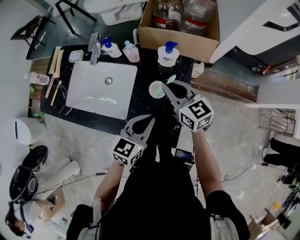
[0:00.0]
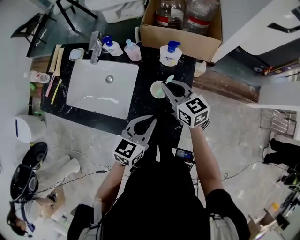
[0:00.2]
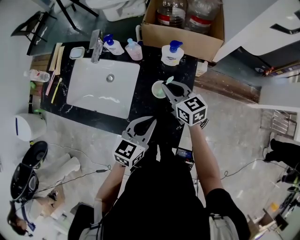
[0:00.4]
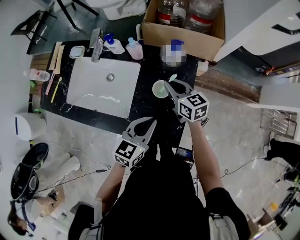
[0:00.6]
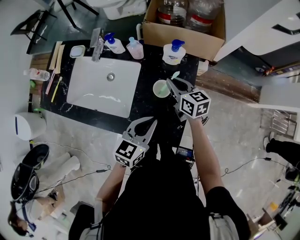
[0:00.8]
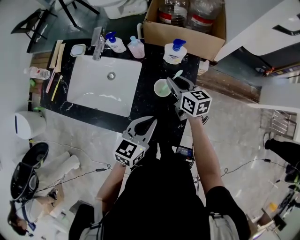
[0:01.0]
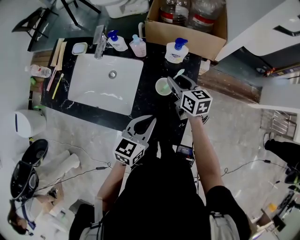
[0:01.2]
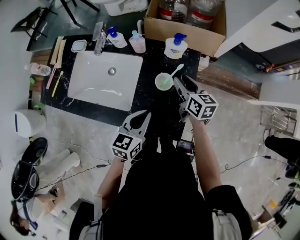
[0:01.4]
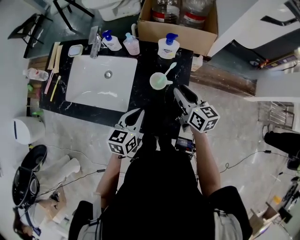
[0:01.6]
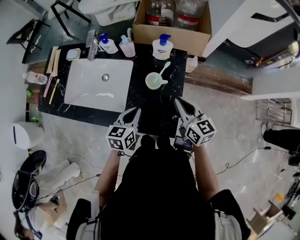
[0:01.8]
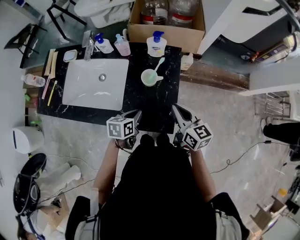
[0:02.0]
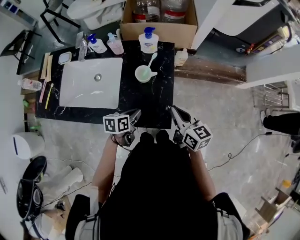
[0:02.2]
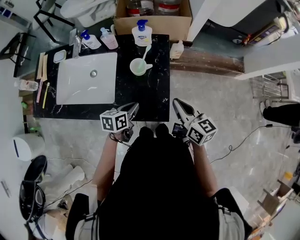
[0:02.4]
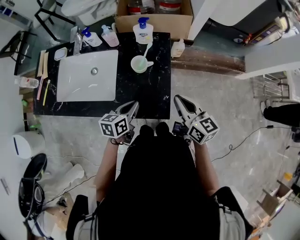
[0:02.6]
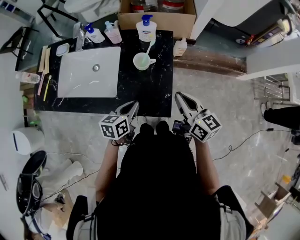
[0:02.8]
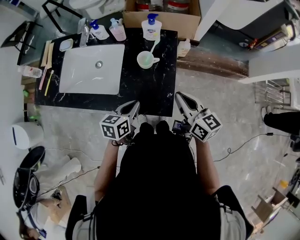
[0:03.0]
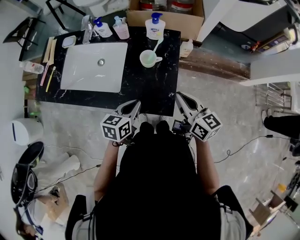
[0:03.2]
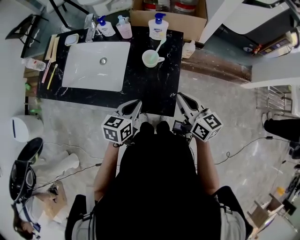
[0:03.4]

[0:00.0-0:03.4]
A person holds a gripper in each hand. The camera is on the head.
0:00.0 to 0:01.6: The left gripper goes approximately 10 cm to the left and downward. The right gripper travels downward and to the right by some 10 cm, swivels about 20 degrees, and opens its fingers.
0:01.6 to 0:03.4: The right gripper goes some 15 cm backward, and closes up; the left gripper is displaced backward by approximately 5 cm, and travels downward and back again, about 10 cm each way.

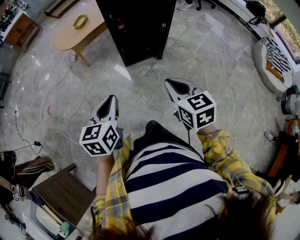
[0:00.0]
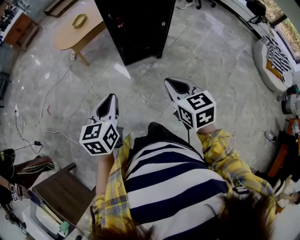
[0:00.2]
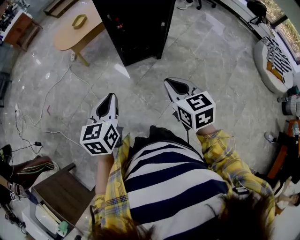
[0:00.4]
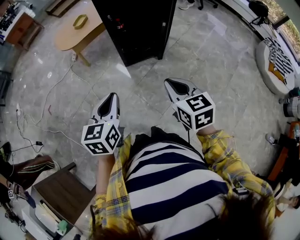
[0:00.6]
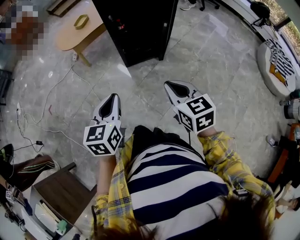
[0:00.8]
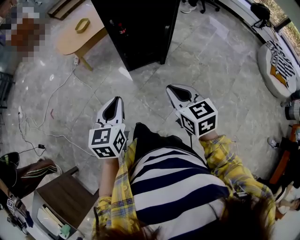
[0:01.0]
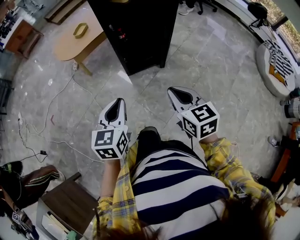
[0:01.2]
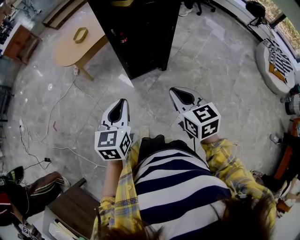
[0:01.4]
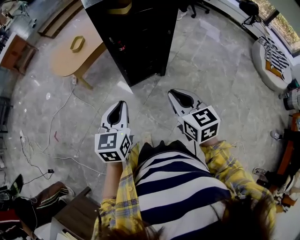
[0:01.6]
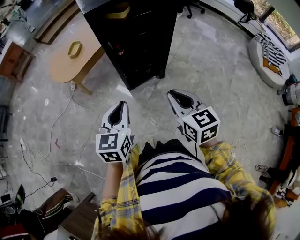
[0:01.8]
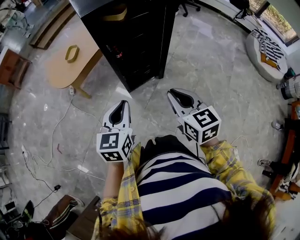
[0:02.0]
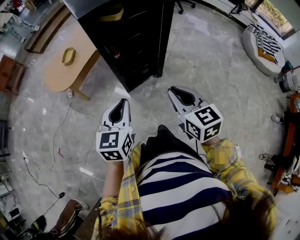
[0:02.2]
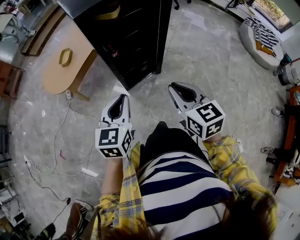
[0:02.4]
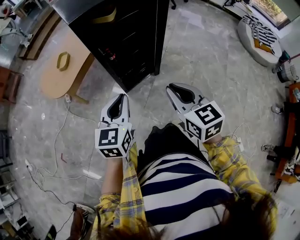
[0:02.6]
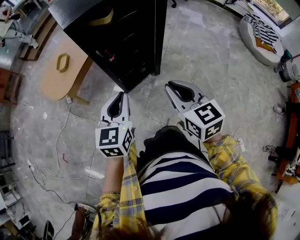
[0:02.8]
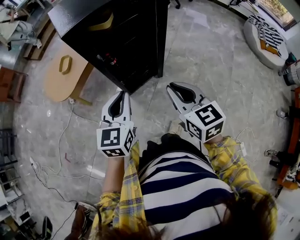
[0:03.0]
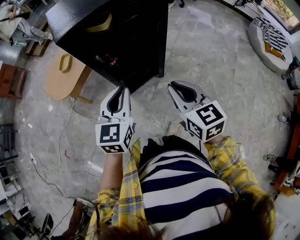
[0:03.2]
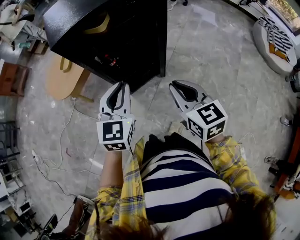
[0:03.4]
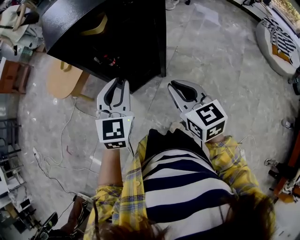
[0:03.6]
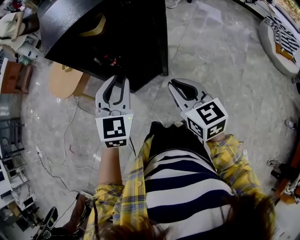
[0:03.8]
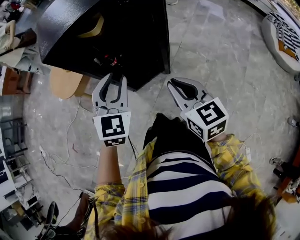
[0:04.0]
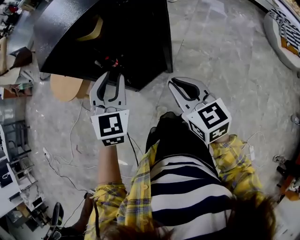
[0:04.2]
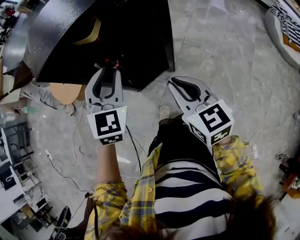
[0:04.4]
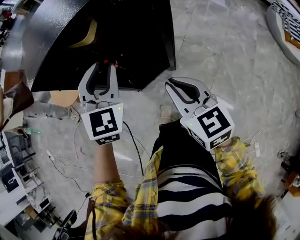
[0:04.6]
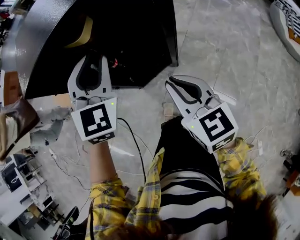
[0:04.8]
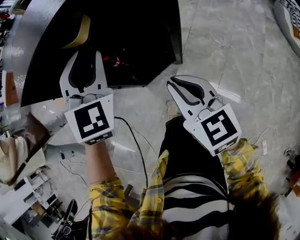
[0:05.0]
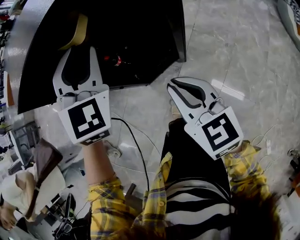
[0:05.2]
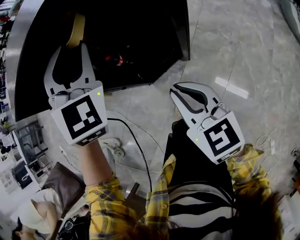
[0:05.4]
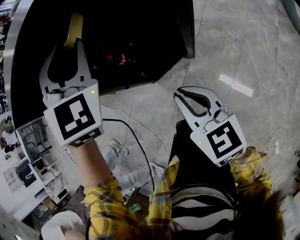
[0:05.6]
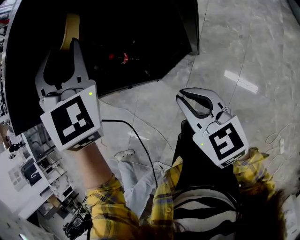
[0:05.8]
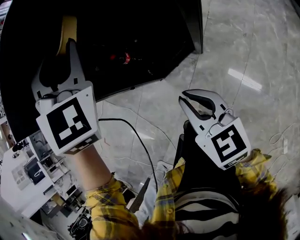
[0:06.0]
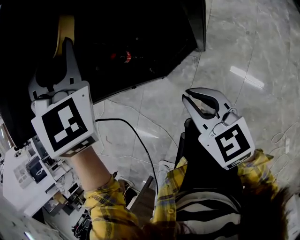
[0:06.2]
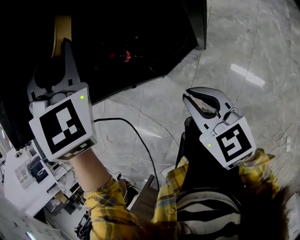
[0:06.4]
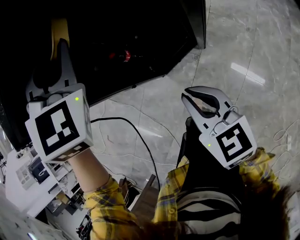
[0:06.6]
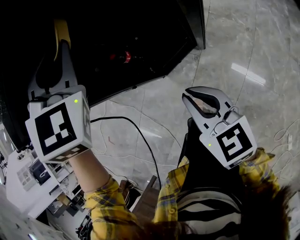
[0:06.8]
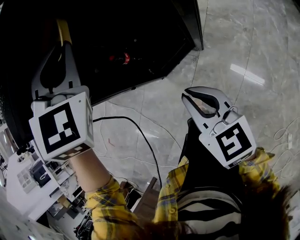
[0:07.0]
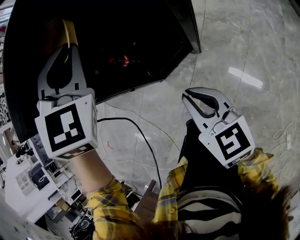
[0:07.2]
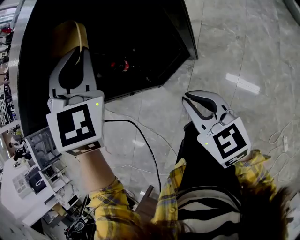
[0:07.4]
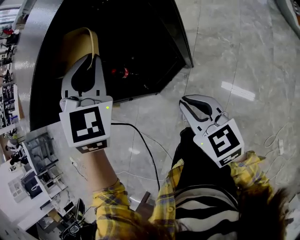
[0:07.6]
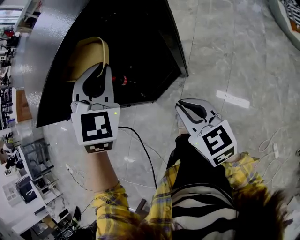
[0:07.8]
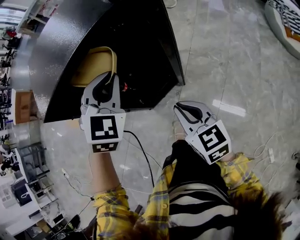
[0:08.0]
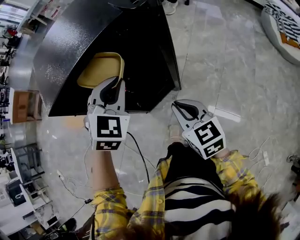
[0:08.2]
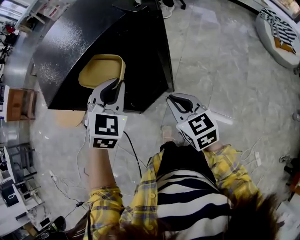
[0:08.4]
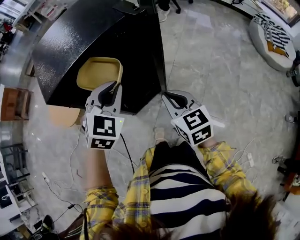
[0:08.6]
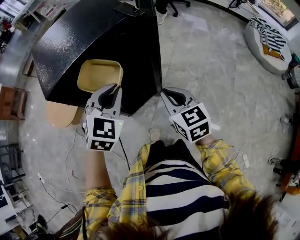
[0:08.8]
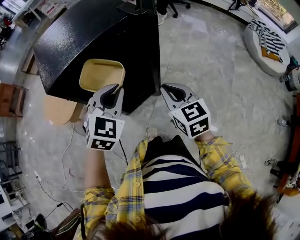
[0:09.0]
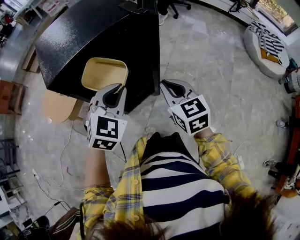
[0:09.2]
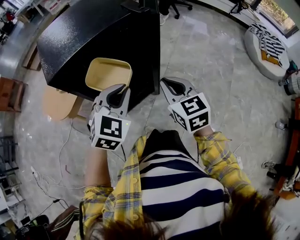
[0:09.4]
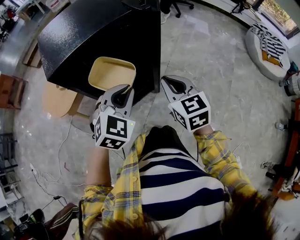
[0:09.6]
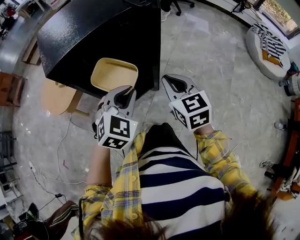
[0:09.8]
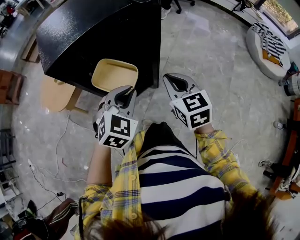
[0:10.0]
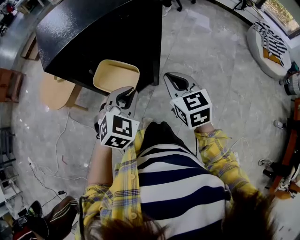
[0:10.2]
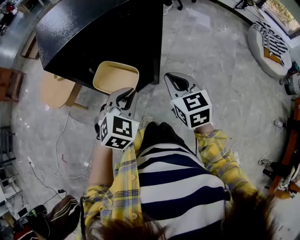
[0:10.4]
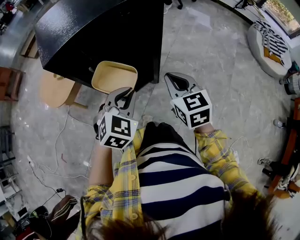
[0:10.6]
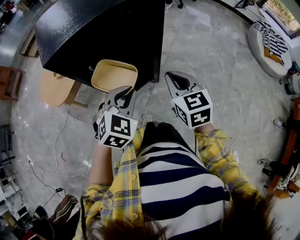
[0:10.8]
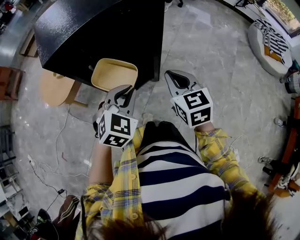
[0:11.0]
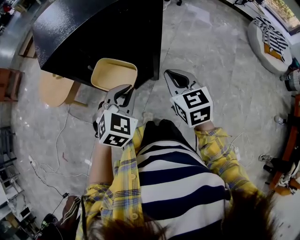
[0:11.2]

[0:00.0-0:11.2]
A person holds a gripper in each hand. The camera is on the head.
0:00.0 to 0:01.6: Both grippers move forward, about 10 cm.
0:01.6 to 0:03.2: Both grippers move forward, about 15 cm.
0:03.2 to 0:04.8: The right gripper shifts roughly 10 cm forward. The left gripper moves forward, some 20 cm, turns by roughly 30 degrees, and opens its fingers.
0:04.8 to 0:06.4: The left gripper is displaced forward by some 10 cm, and turns by some 20 degrees. Meanwhile the right gripper goes about 10 cm downward.
0:06.4 to 0:08.0: The left gripper travels backward by about 10 cm, and turns by approximately 20 degrees, while the right gripper moves upward, approximately 5 cm.
0:08.0 to 0:09.6: The right gripper heads upward, covering about 10 cm. Meanwhile the left gripper moves backward, some 10 cm.
0:09.6 to 0:11.2: The left gripper ends up some 5 cm from where it was.

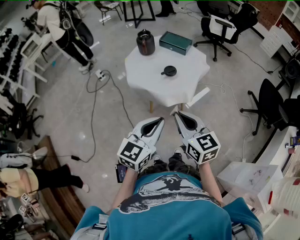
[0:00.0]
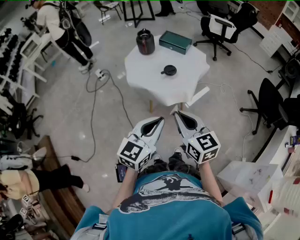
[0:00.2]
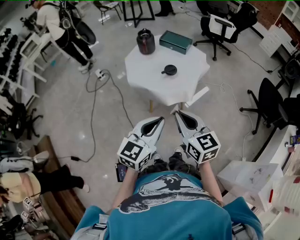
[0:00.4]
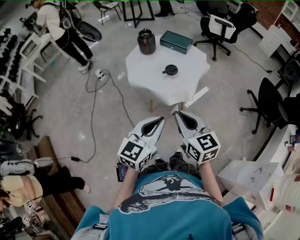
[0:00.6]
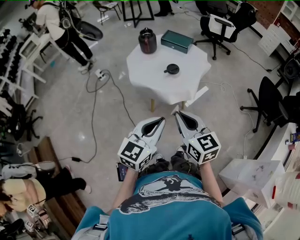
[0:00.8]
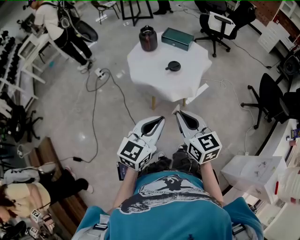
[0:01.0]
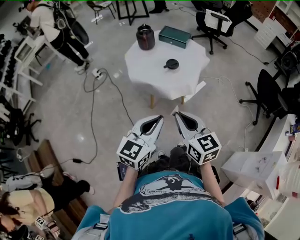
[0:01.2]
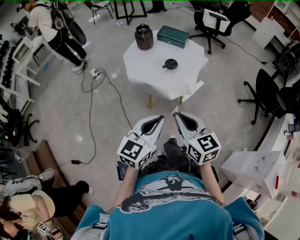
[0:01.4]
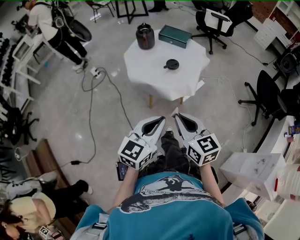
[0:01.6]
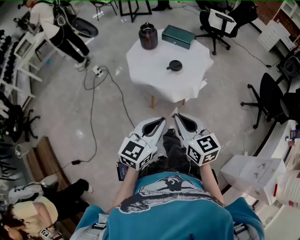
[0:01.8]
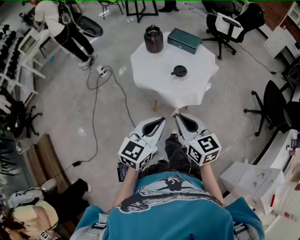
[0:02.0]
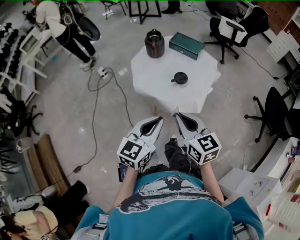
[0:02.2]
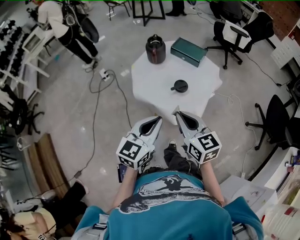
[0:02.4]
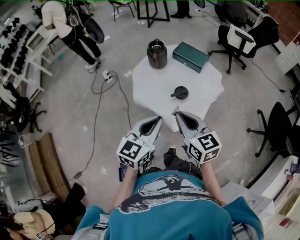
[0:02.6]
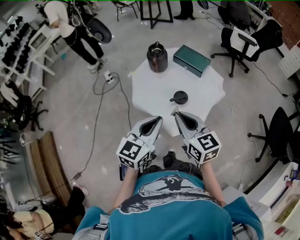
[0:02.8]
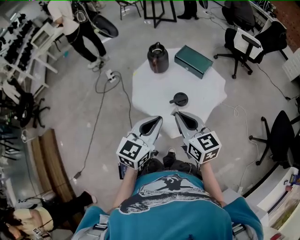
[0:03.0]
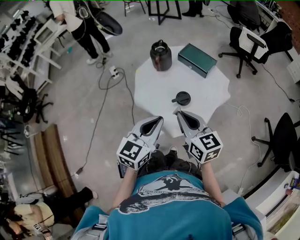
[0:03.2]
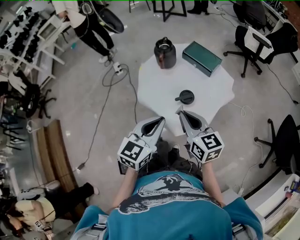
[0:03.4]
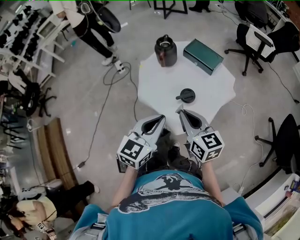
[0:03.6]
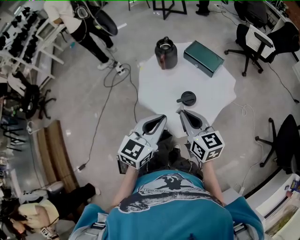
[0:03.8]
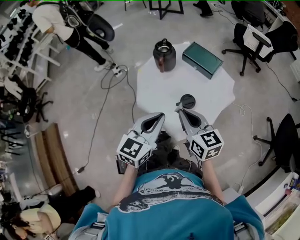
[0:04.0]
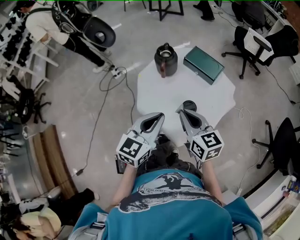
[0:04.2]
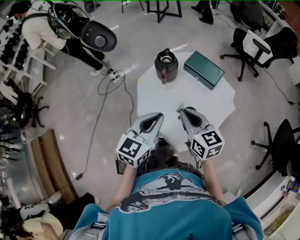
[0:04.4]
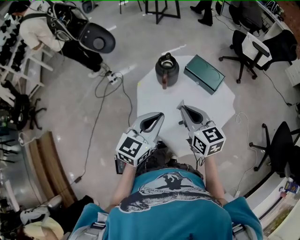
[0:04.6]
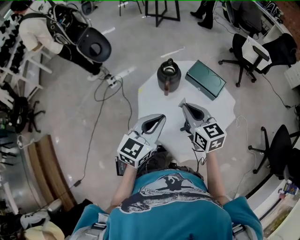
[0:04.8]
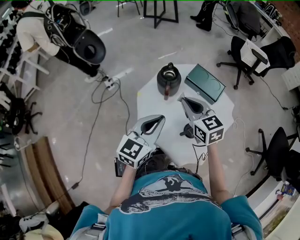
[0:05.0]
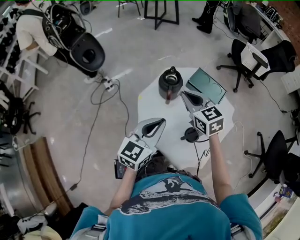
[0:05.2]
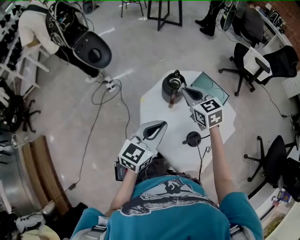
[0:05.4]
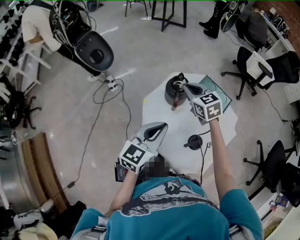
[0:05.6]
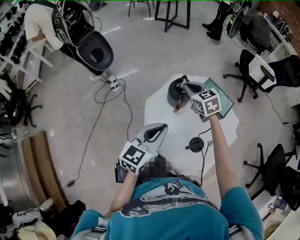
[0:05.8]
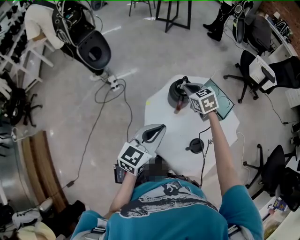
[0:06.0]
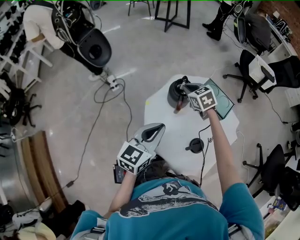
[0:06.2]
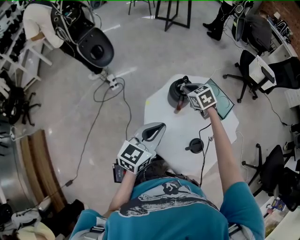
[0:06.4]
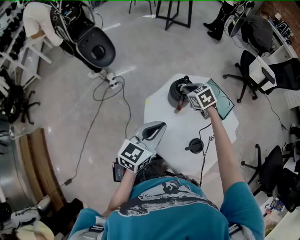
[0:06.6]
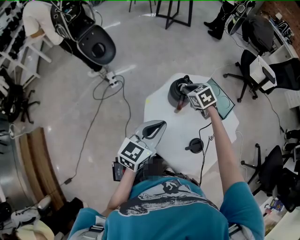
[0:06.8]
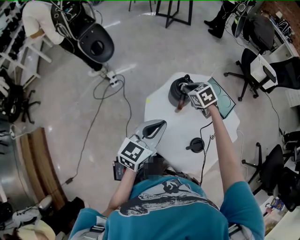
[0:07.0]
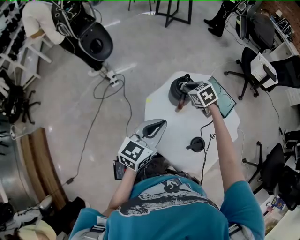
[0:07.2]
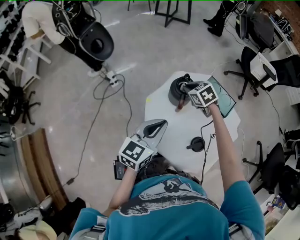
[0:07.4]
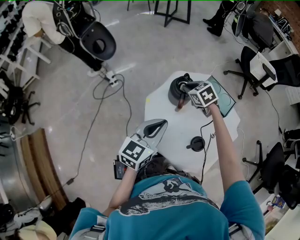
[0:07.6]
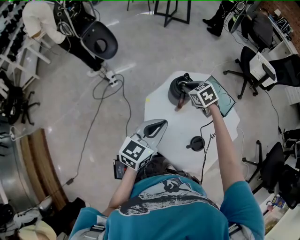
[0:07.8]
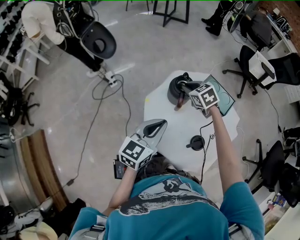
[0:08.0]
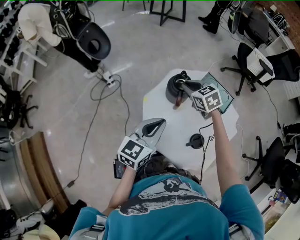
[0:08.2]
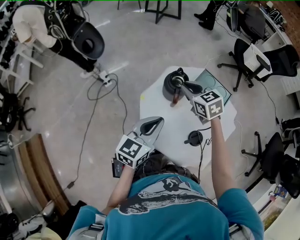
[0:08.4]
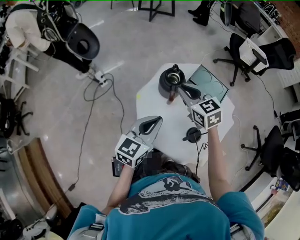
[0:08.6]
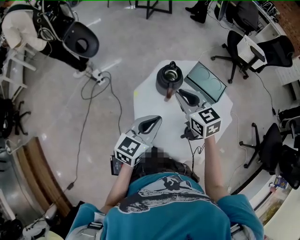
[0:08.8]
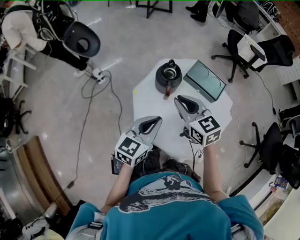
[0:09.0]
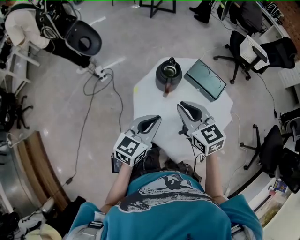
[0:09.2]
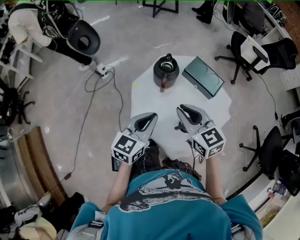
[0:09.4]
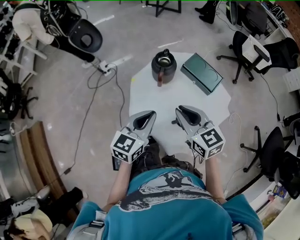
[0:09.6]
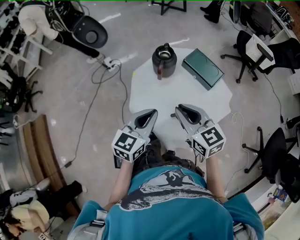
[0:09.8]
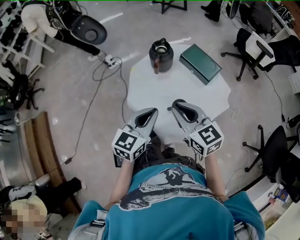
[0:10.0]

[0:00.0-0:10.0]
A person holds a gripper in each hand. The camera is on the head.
0:00.0 to 0:01.4: The right gripper ends up approximately 5 cm from where it was. Meanwhile the left gripper changes place by about 5 cm.
0:01.4 to 0:02.8: Both grippers move forward, some 25 cm.
0:02.8 to 0:04.2: The grippers both shift forward by approximately 10 cm.
0:04.2 to 0:05.8: The left gripper moves forward and to the left, roughly 15 cm; the right gripper travels forward by some 30 cm, and changes its angle by some 30 degrees.
0:05.8 to 0:07.2: The right gripper travels downward by about 5 cm.
0:07.2 to 0:08.6: The right gripper goes approximately 10 cm upward and backward, and changes its angle by about 30 degrees.
0:08.6 to 0:10.0: The left gripper is displaced backward and to the right by roughly 15 cm, while the right gripper goes approximately 25 cm backward.
